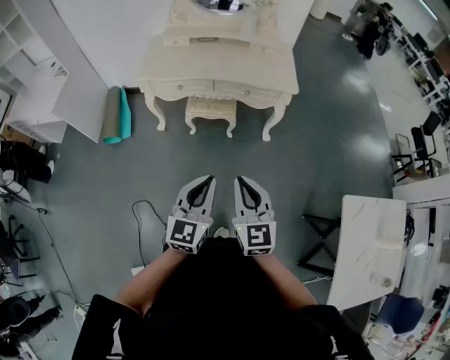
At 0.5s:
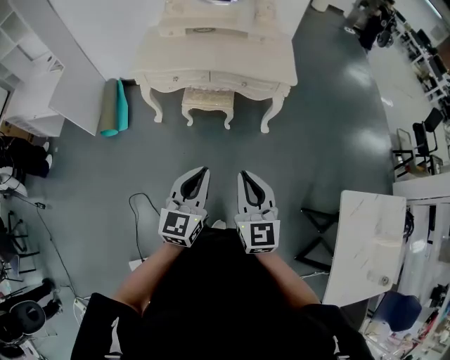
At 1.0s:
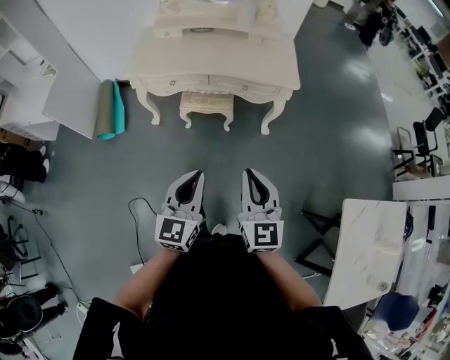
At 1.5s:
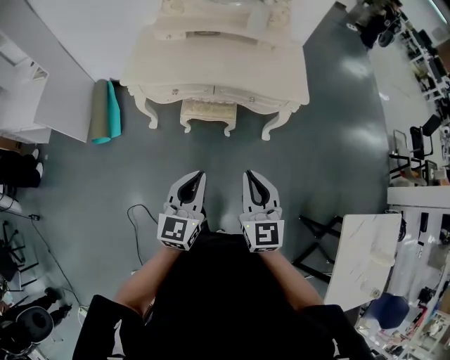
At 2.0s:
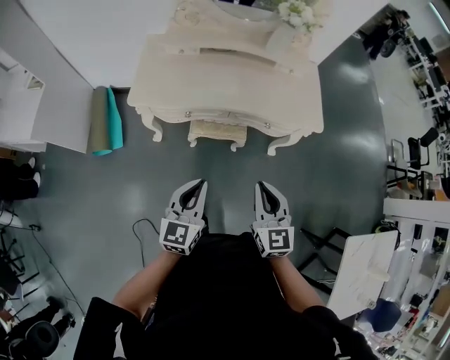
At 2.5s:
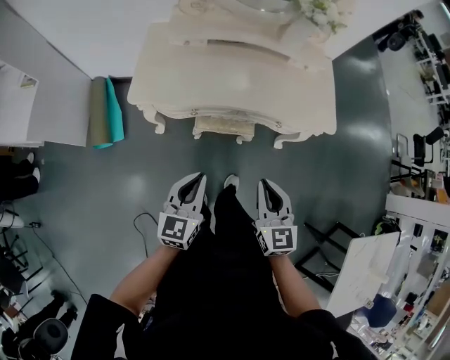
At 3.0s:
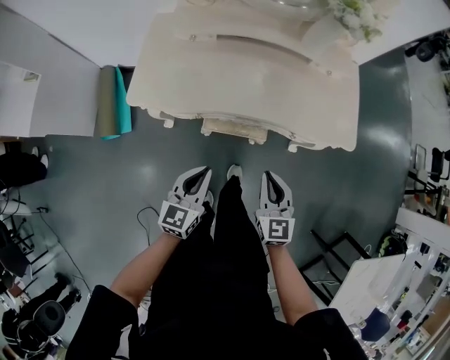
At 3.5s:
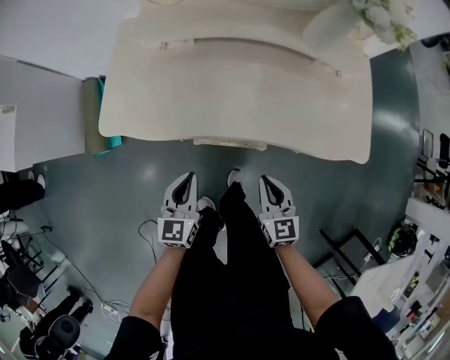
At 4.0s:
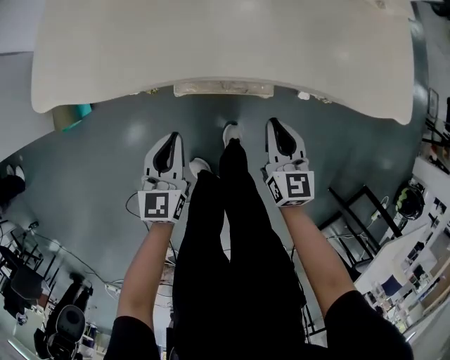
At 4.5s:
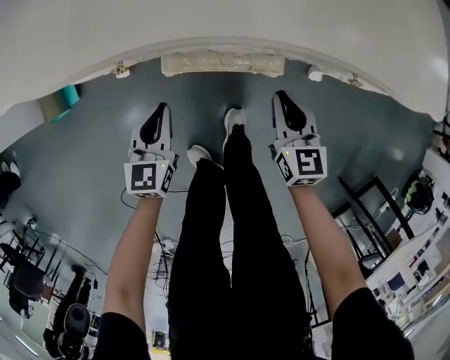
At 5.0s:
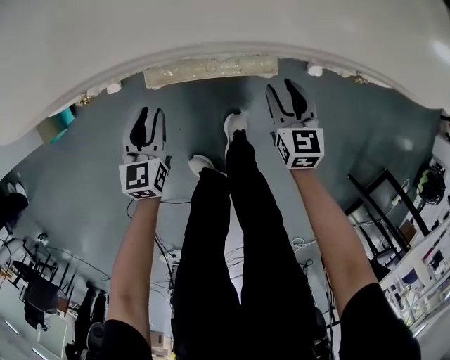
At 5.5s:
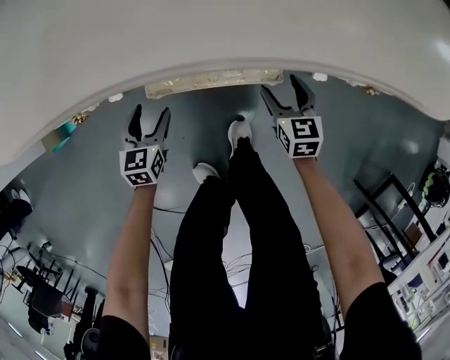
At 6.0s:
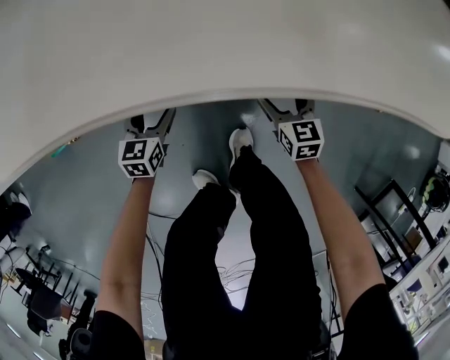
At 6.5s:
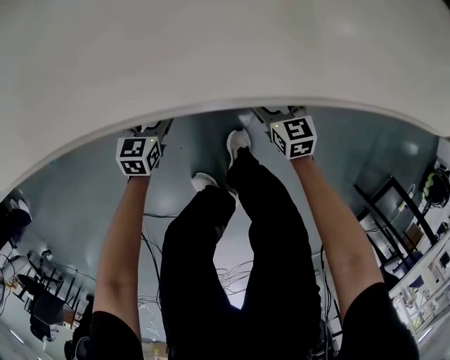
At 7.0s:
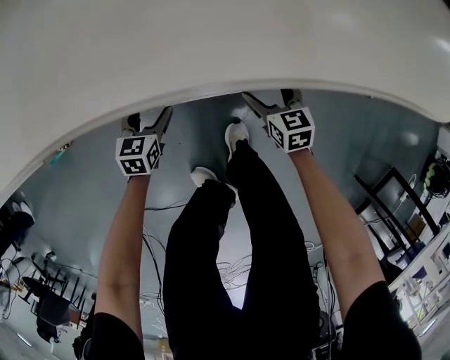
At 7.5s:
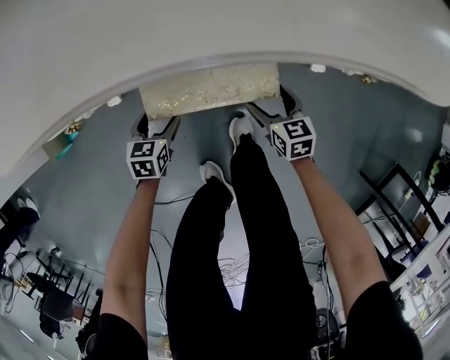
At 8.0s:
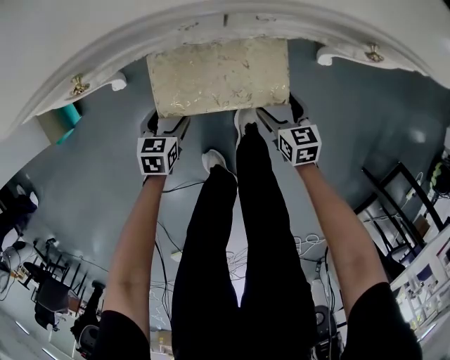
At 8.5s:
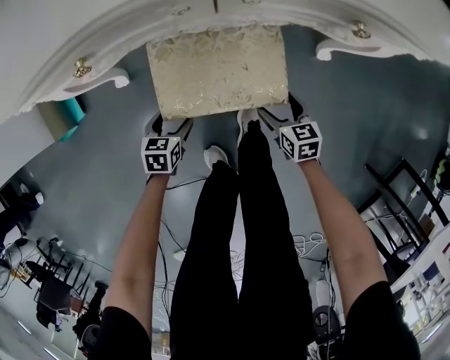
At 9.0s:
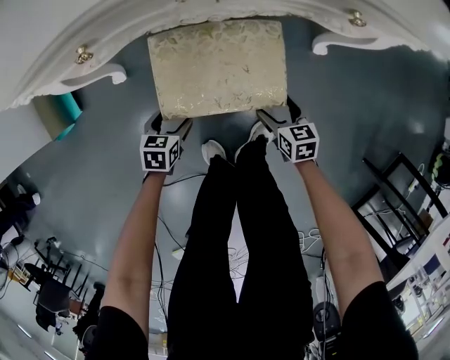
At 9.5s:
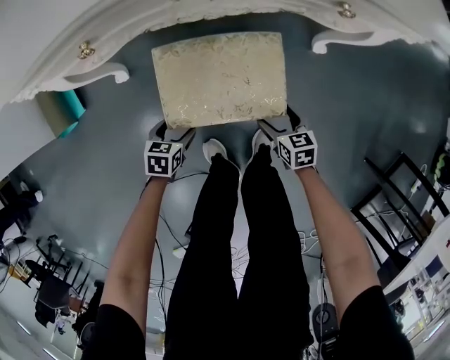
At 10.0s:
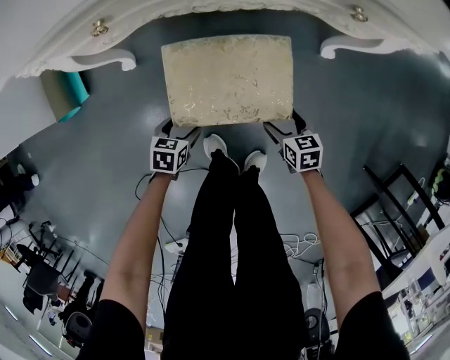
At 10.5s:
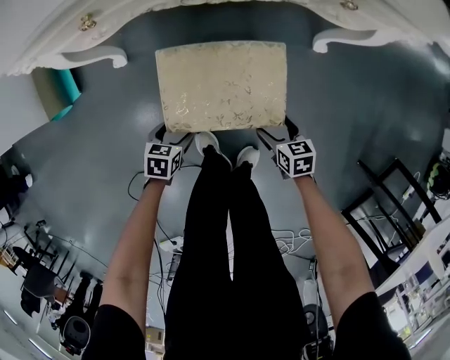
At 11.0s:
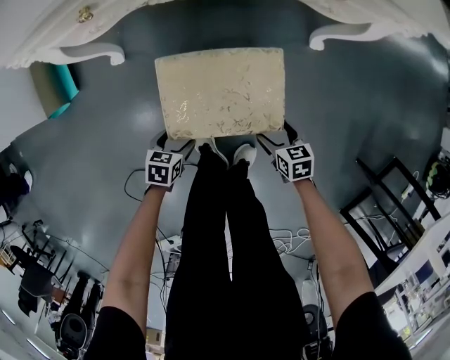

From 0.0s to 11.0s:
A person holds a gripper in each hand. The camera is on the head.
From 0.0s to 2.0s: The right gripper is displaced forward by approximately 30 cm. Meanwhile the left gripper is displaced forward and to the left by about 35 cm.
From 2.0s to 3.5s: Both grippers move downward and forward, roughly 35 cm.
From 3.5s to 5.5s: The grippers both shift downward by approximately 35 cm. The left gripper opens up. The right gripper opens up.
From 5.5s to 7.5s: The left gripper travels downward by some 5 cm. The right gripper heads backward, covering roughly 5 cm.
From 7.5s to 9.0s: The grippers both shift backward by approximately 10 cm.
From 9.0s to 11.0s: The two grippers go roughly 15 cm backward.

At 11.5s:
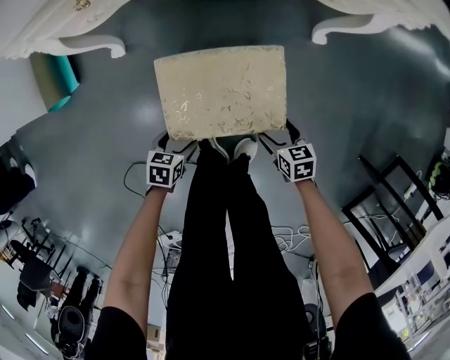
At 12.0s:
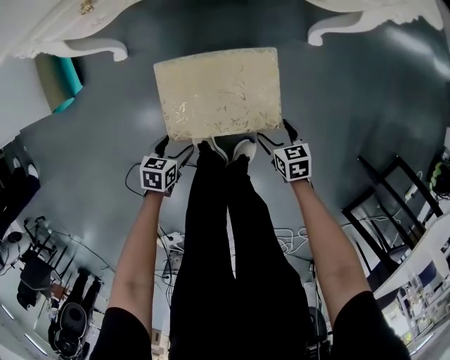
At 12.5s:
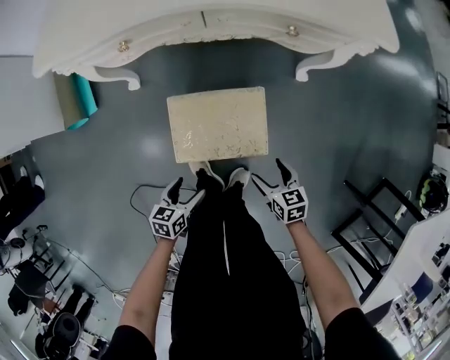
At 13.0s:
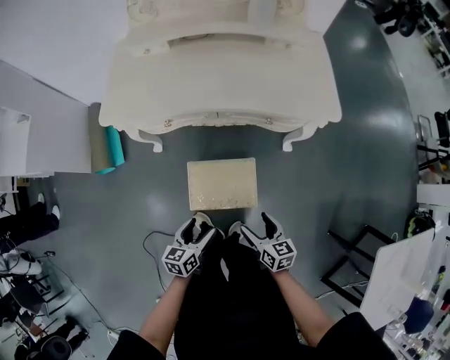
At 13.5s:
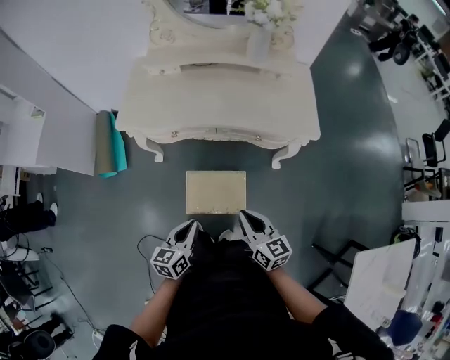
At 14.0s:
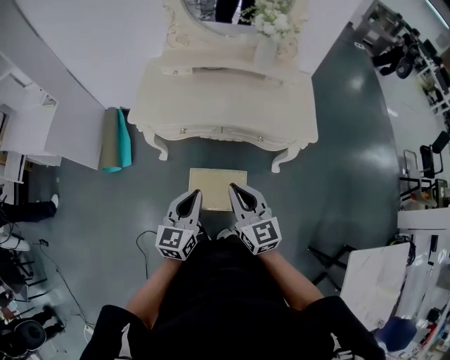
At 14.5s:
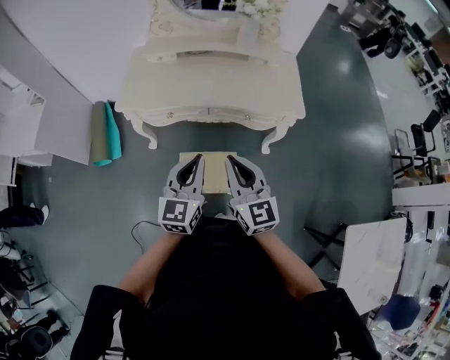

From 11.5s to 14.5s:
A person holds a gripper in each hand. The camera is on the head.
From 11.5s to 13.0s: The two grippers go about 35 cm upward. The left gripper rotates approximately 40 degrees. The right gripper swivels approximately 20 degrees.
From 13.0s to 14.5s: Both grippers move upward, roughly 35 cm. The left gripper changes its angle by roughly 40 degrees, and closes its fingers. Meanwhile the right gripper rotates about 40 degrees, and closes up.

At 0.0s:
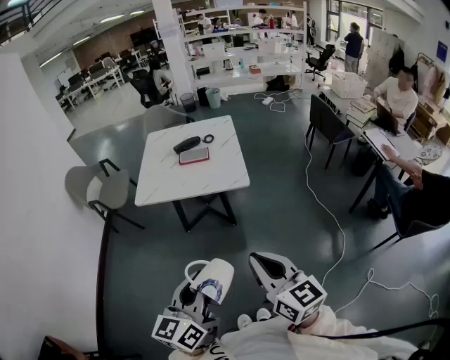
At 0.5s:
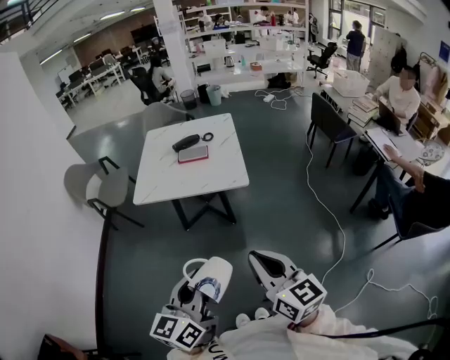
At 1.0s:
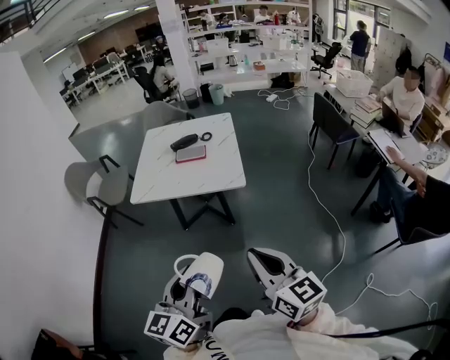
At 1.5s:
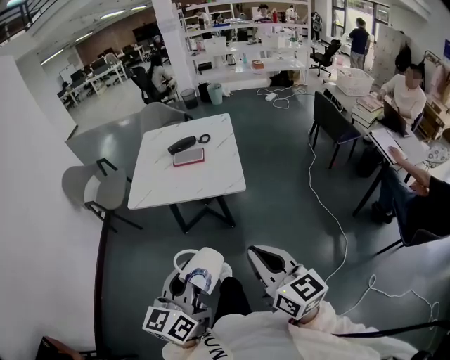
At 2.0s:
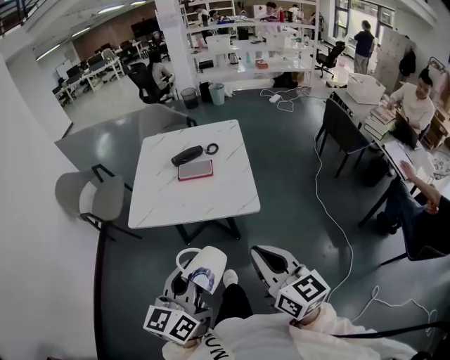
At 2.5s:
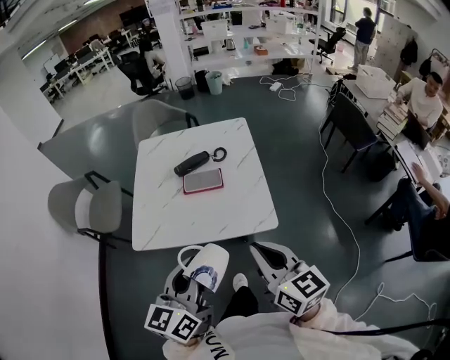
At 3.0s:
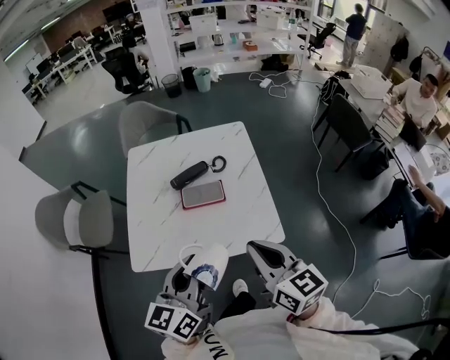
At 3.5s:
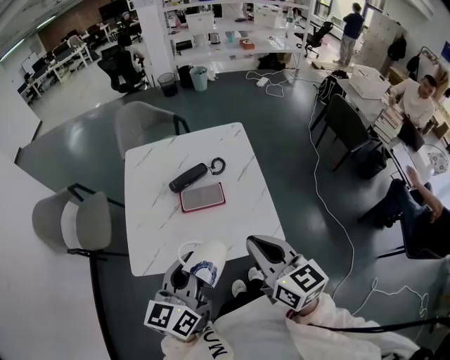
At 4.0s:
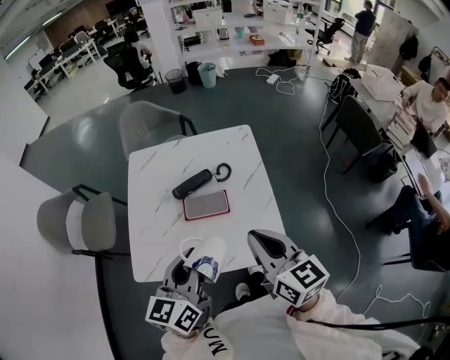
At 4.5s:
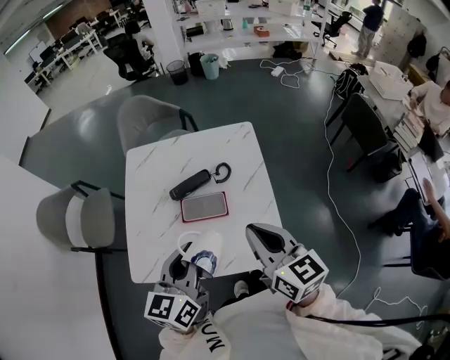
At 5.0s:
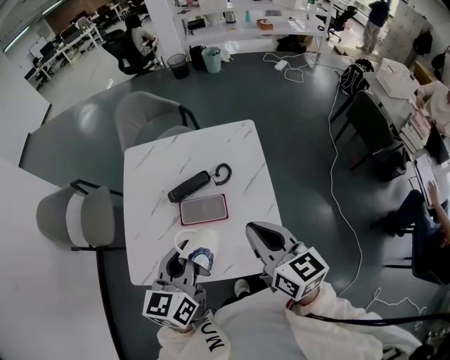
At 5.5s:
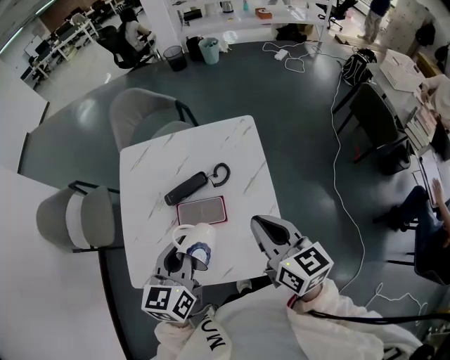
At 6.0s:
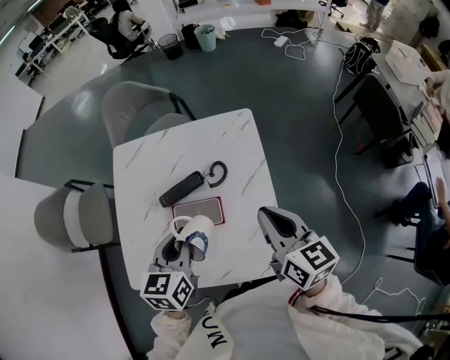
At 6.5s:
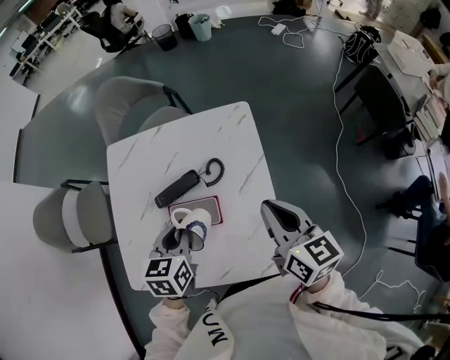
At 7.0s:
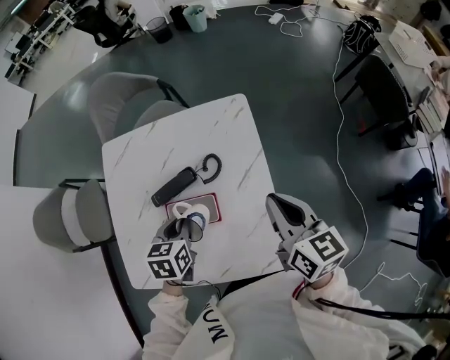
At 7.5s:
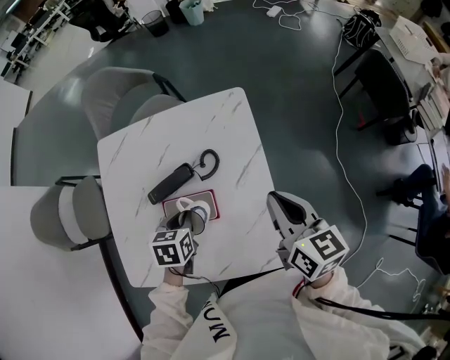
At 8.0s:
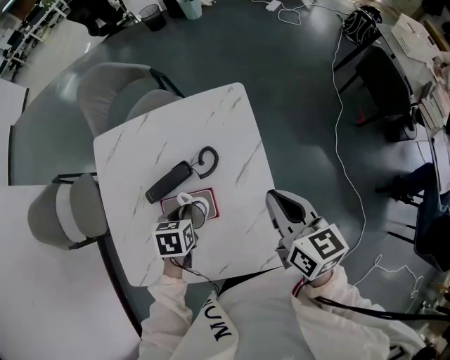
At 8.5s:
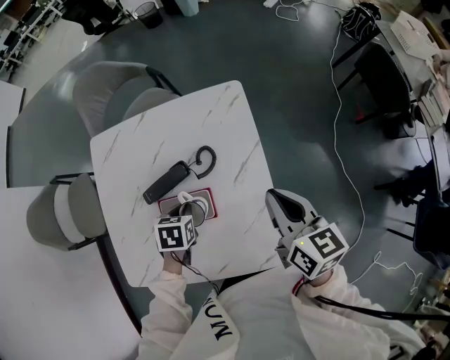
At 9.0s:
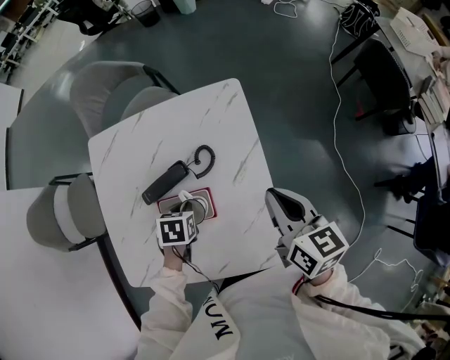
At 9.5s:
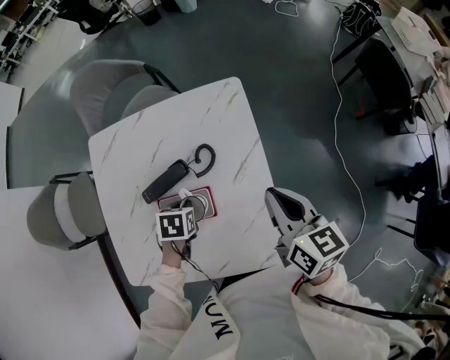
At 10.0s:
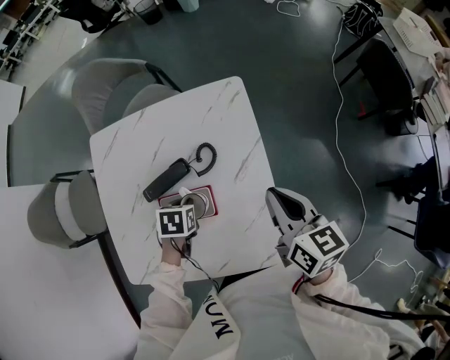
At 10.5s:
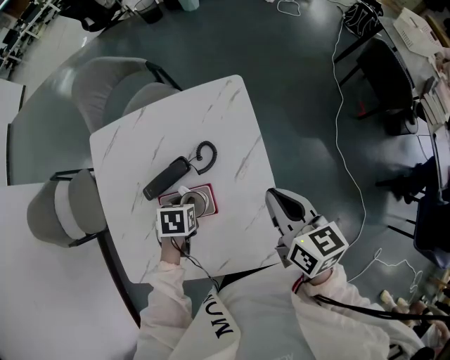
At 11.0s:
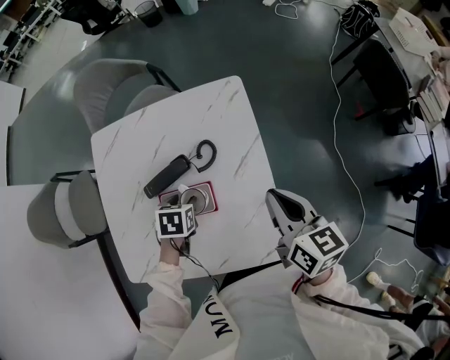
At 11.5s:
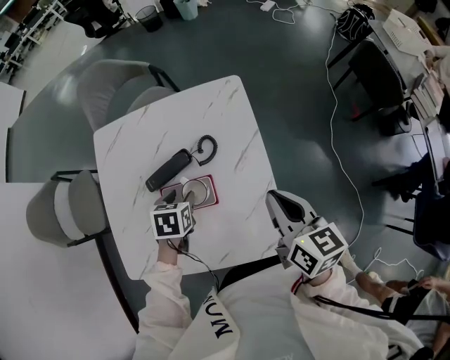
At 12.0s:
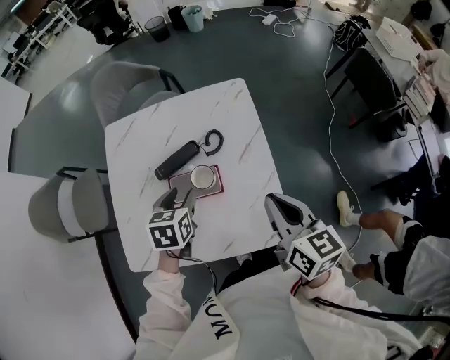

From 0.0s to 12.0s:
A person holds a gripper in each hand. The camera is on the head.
From 0.0s to 2.0s: The two grippers go about 20 cm forward.
From 2.0s to 4.0s: Both grippers move forward, about 35 cm.
From 4.0s to 6.0s: The right gripper is displaced forward, to the right and downward by roughly 20 cm. Meanwhile the left gripper shifts approximately 20 cm forward and downward, and rotates about 20 degrees.
From 6.0s to 8.0s: The left gripper travels downward by approximately 20 cm, and points its fingers about 30 degrees further downward; the right gripper travels downward by some 5 cm.
From 8.0s to 10.0s: The grippers stay close to where they were, moving slightly.
From 10.0s to 12.0s: The right gripper moves approximately 15 cm; the left gripper moves upward, roughly 10 cm, rotates approximately 30 degrees, and opens.

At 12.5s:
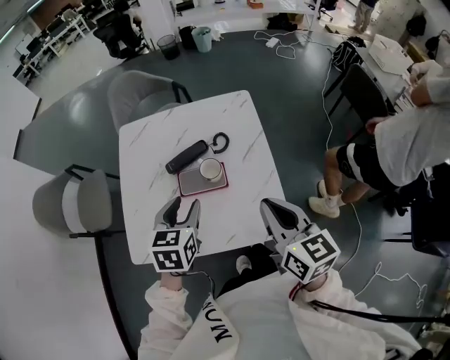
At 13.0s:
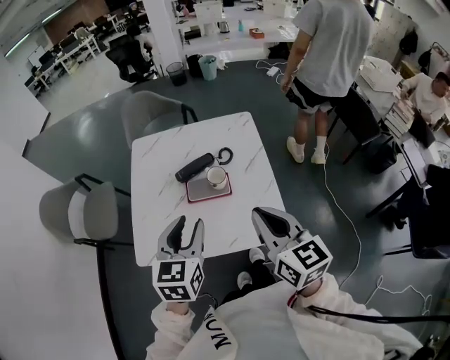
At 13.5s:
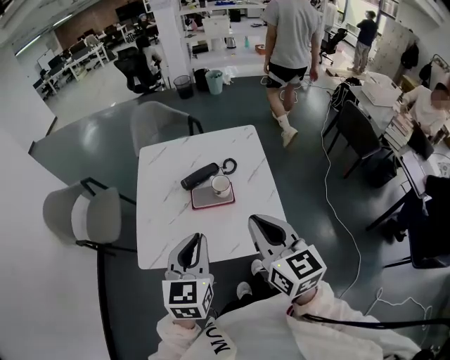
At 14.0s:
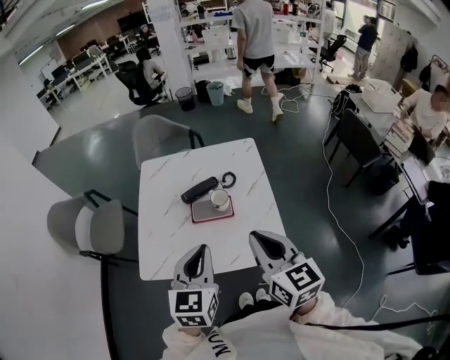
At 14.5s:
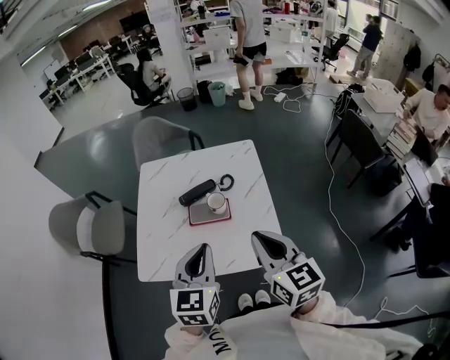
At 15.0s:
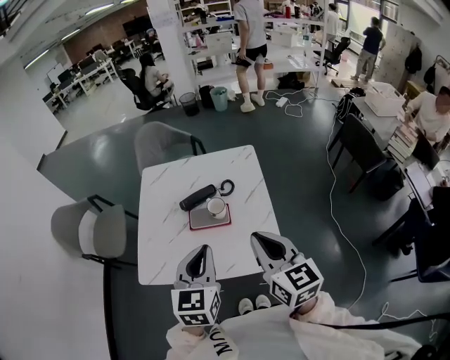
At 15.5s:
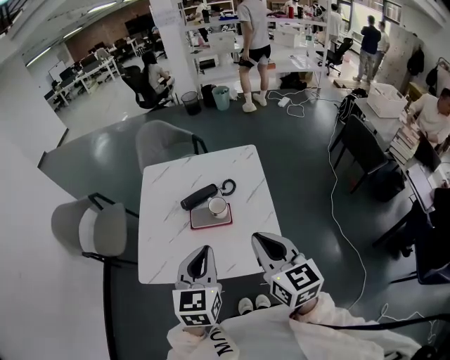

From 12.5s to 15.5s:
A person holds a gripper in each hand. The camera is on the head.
From 12.5s to 14.0s: The right gripper moves backward and upward, approximately 10 cm. The left gripper travels backward and upward by roughly 20 cm, and closes up.
From 14.0s to 15.5s: The grippers stay close to where they were, moving slightly.
